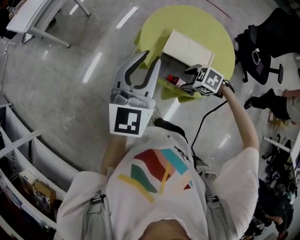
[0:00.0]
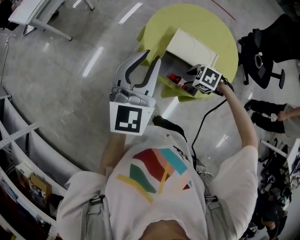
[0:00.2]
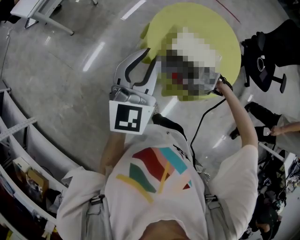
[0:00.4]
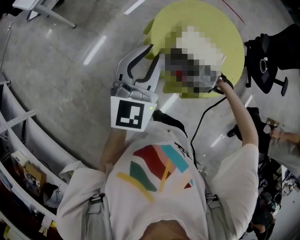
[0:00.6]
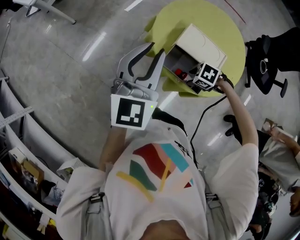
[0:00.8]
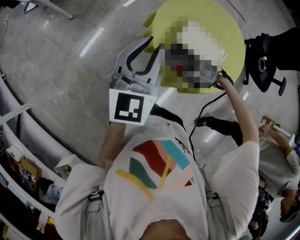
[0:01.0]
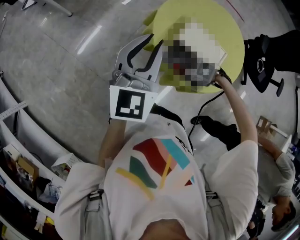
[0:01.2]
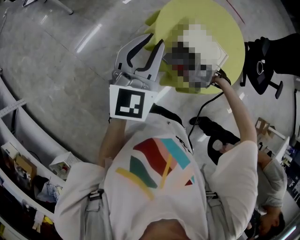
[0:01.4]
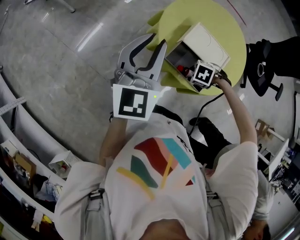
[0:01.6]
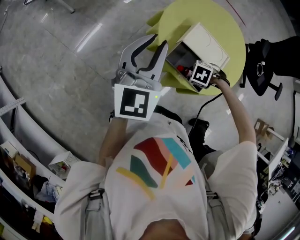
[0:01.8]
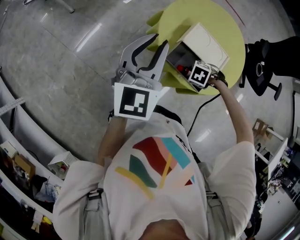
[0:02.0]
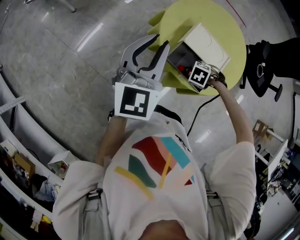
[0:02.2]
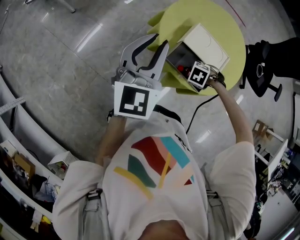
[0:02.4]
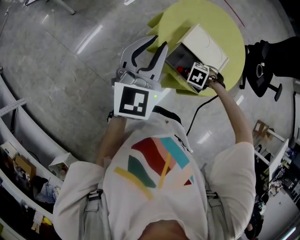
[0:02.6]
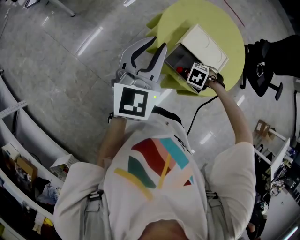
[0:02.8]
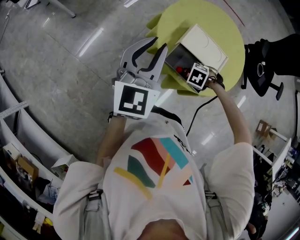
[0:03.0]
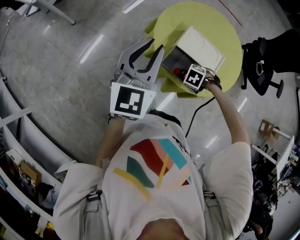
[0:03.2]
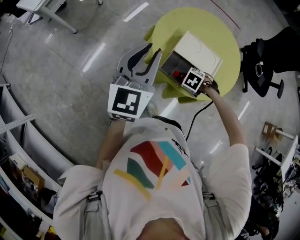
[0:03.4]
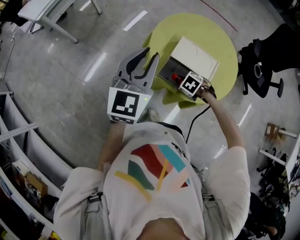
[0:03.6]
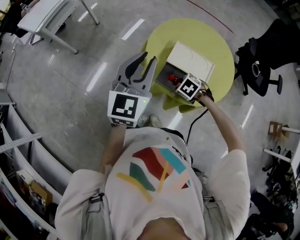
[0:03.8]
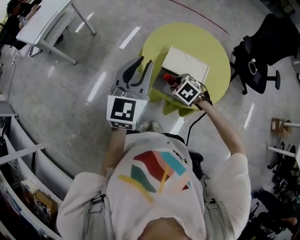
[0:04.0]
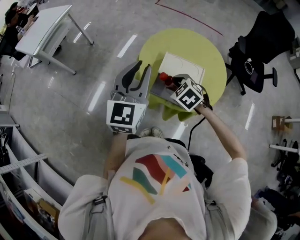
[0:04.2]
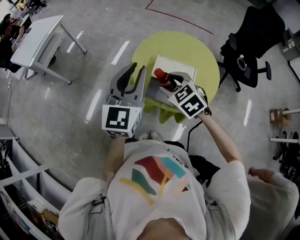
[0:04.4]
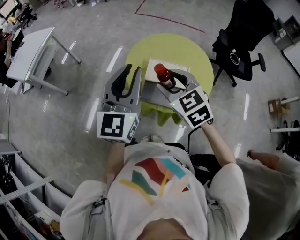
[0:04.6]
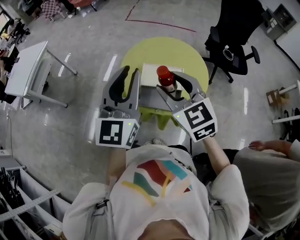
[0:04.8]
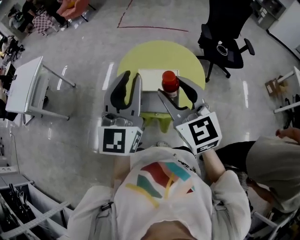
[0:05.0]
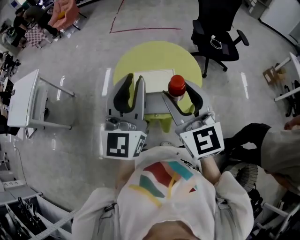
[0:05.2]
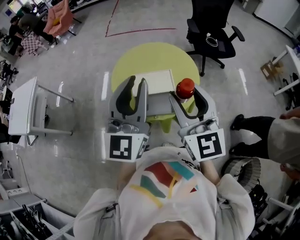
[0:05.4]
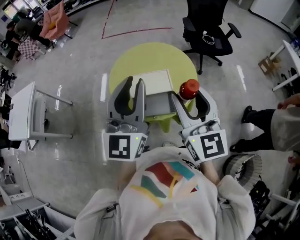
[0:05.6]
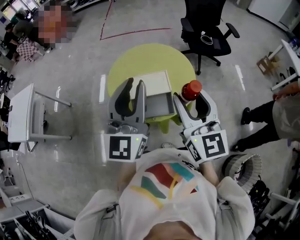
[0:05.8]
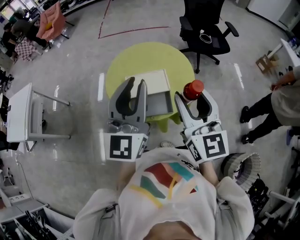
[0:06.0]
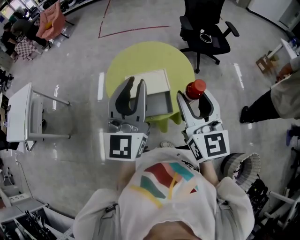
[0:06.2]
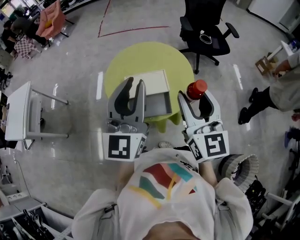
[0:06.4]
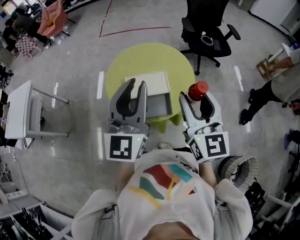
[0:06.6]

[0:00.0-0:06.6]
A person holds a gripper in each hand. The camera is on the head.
0:00.0 to 0:01.6: The left gripper ends up approximately 5 cm from where it was. The right gripper travels downward by some 10 cm, and rotates roughly 30 degrees.
0:01.6 to 0:03.2: There are only small adjustments of the grippers.
0:03.2 to 0:05.0: The right gripper travels upward by some 40 cm, and points its fingers roughly 80 degrees further upward. Meanwhile the left gripper moves upward, some 15 cm, and swivels about 30 degrees.
0:05.0 to 0:06.6: The left gripper shifts about 5 cm to the right. Meanwhile the right gripper heads to the right, covering approximately 10 cm, and swivels approximately 30 degrees.

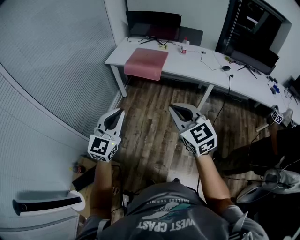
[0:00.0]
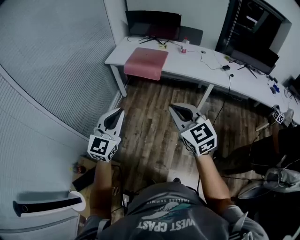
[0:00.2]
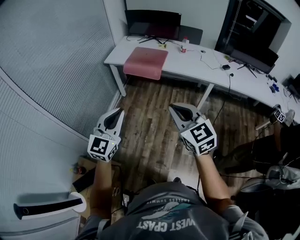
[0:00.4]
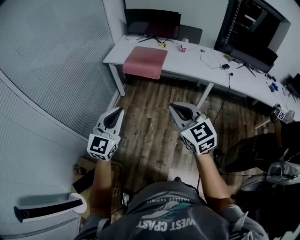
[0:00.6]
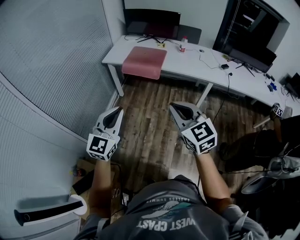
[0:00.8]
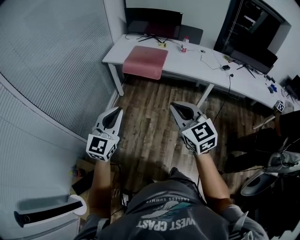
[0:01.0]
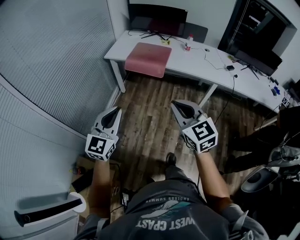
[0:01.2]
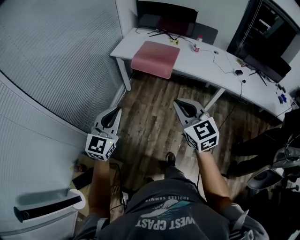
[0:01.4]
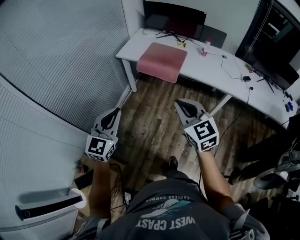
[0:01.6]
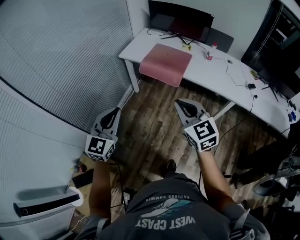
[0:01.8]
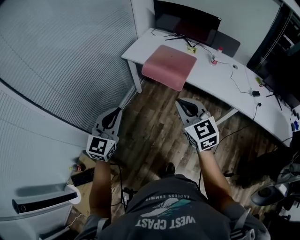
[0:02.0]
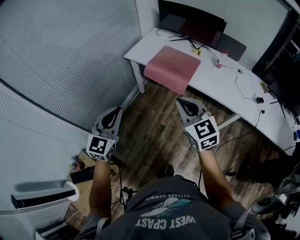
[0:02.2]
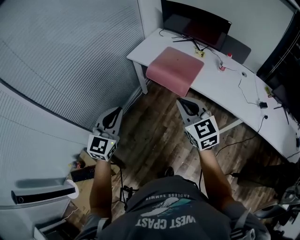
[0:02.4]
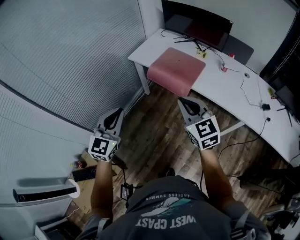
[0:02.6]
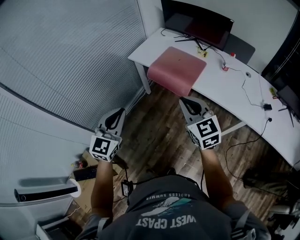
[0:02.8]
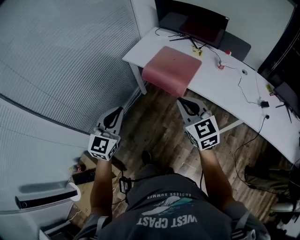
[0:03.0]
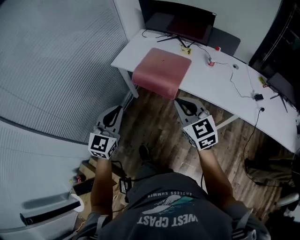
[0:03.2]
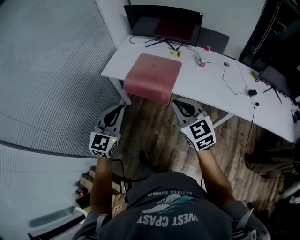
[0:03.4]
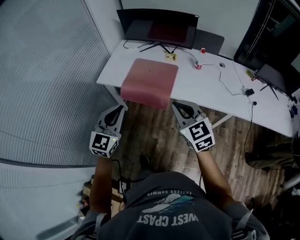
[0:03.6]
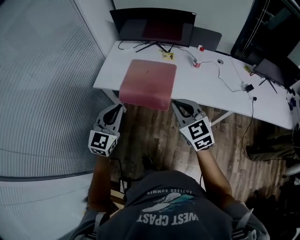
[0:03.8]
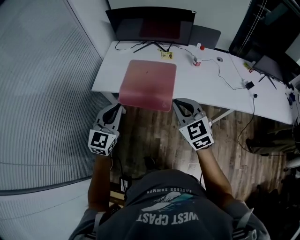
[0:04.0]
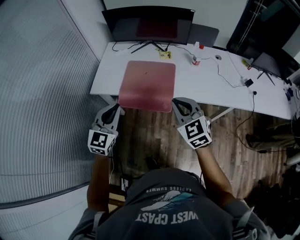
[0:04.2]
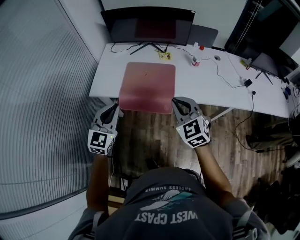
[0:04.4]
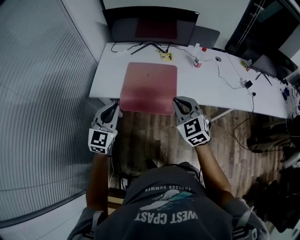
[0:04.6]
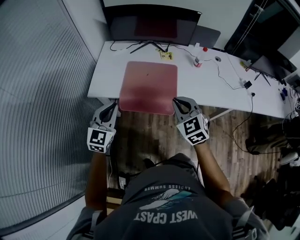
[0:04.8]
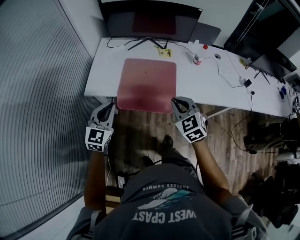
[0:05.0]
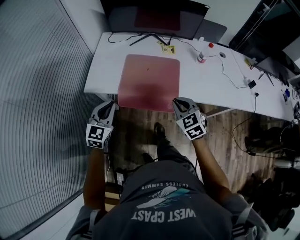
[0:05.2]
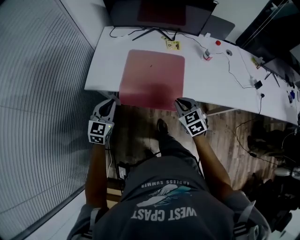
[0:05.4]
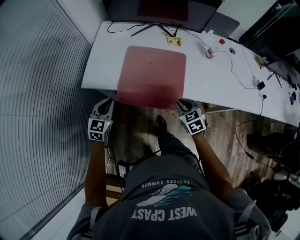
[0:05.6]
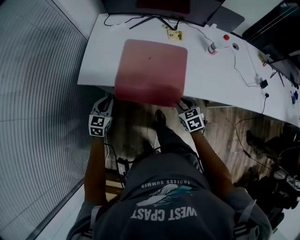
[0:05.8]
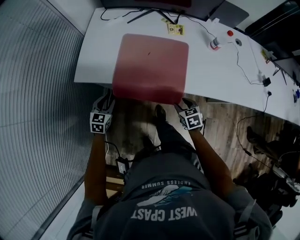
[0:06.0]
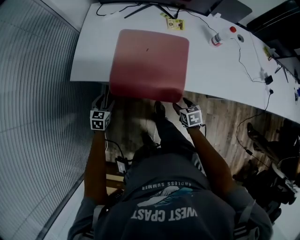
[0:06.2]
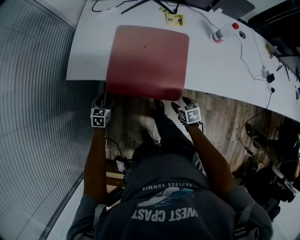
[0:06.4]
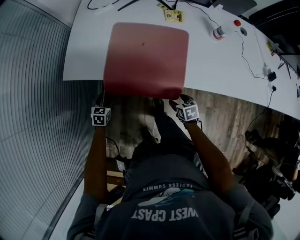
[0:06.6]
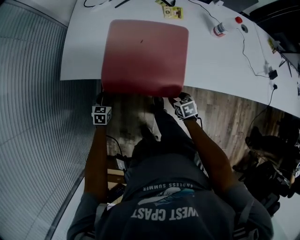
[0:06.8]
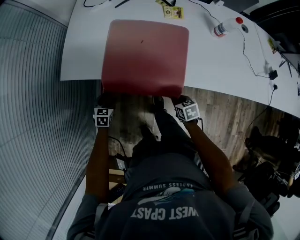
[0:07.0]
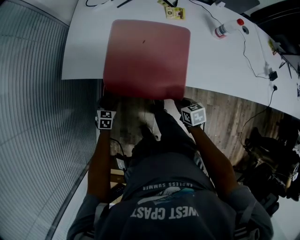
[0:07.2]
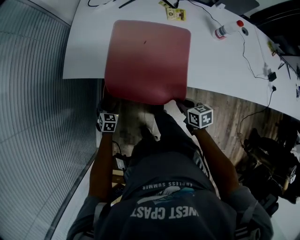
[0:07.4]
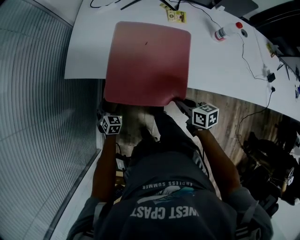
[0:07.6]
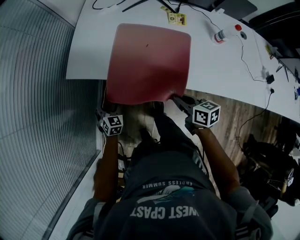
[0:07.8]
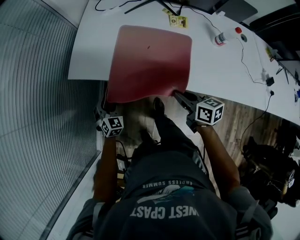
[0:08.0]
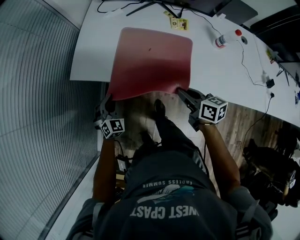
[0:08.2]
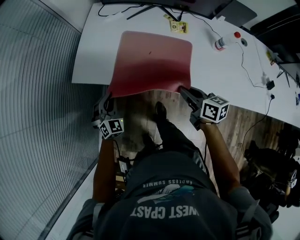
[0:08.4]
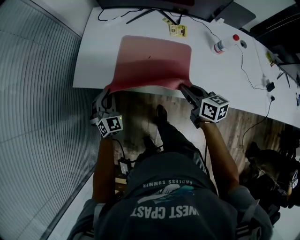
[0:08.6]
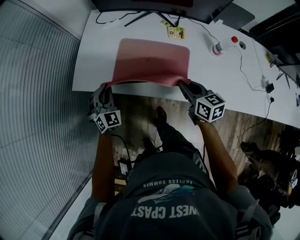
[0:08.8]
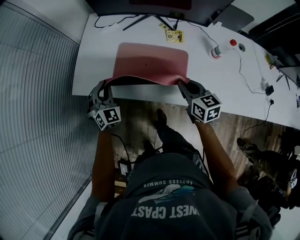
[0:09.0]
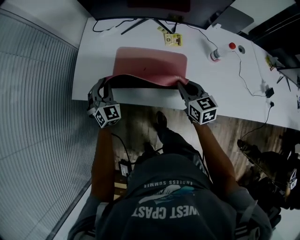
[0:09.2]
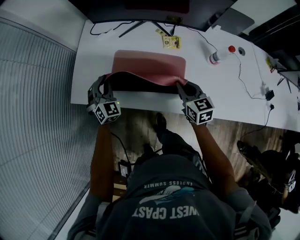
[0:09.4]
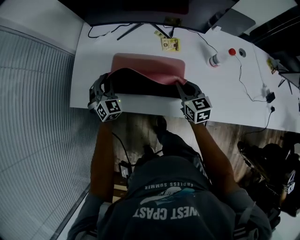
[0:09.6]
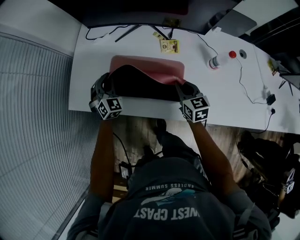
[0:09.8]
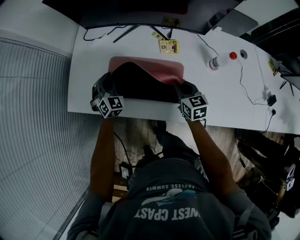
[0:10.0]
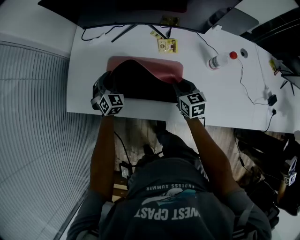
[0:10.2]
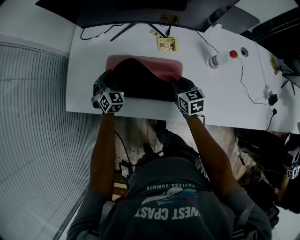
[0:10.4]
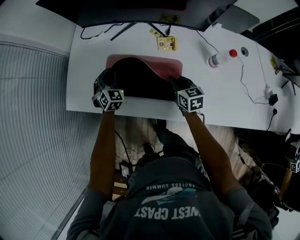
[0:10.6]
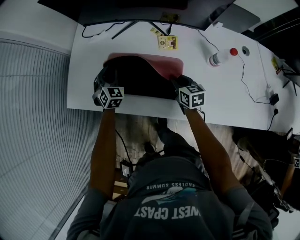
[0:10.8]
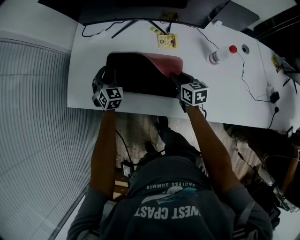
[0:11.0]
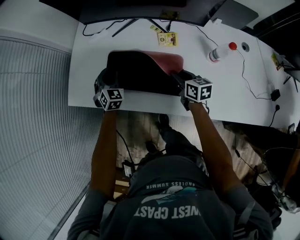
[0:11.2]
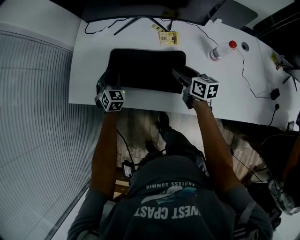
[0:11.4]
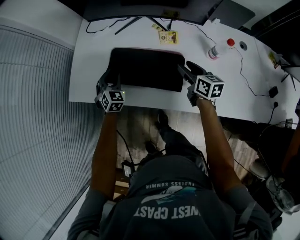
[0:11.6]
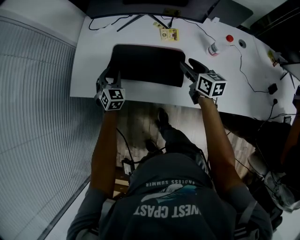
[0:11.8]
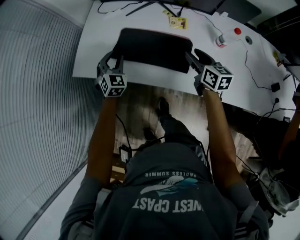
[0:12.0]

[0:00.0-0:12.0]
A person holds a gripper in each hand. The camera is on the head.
0:00.0 to 0:01.6: The left gripper goes approximately 15 cm forward and to the left; the right gripper goes approximately 15 cm forward.
0:01.6 to 0:03.0: The grippers both shift forward and to the right by about 20 cm.
0:03.0 to 0:04.4: The right gripper shifts by approximately 20 cm, and rotates some 30 degrees, while the left gripper shifts by about 30 cm, and swivels approximately 30 degrees.
0:04.4 to 0:06.0: Both grippers move downward, roughly 35 cm. The left gripper turns by about 30 degrees, and opens up, while the right gripper angles its fingers downward, by approximately 30 degrees, and opens up.
0:06.0 to 0:07.6: The left gripper is displaced downward by some 10 cm, changes its angle by roughly 20 degrees, and opens its fingers. The right gripper goes downward and returns, some 10 cm each way, turns by about 30 degrees, and closes up.
0:07.6 to 0:09.0: The left gripper travels upward, forward and to the right by about 30 cm, swivels about 40 degrees, and closes. Meanwhile the right gripper heads forward, upward and to the right, covering some 20 cm, and rotates roughly 30 degrees.
0:09.0 to 0:10.4: The right gripper shifts approximately 15 cm downward, forward and to the right. Meanwhile the left gripper heads forward, to the right and downward, covering roughly 20 cm.
0:10.4 to 0:12.0: The right gripper is displaced upward by about 10 cm, and opens its fingers, while the left gripper is displaced backward and upward by about 10 cm.

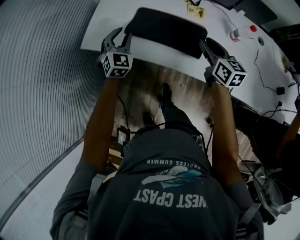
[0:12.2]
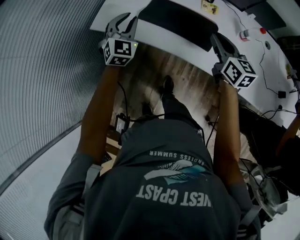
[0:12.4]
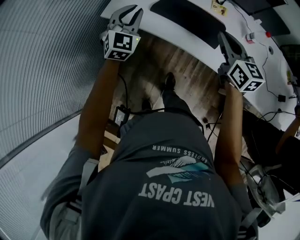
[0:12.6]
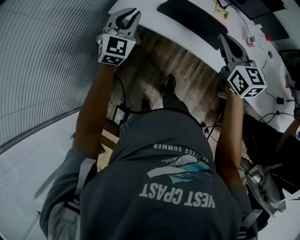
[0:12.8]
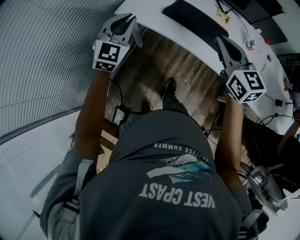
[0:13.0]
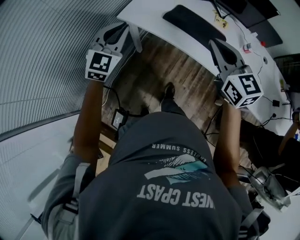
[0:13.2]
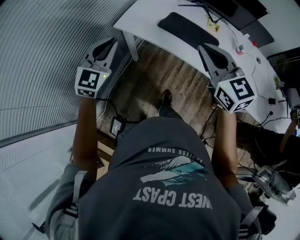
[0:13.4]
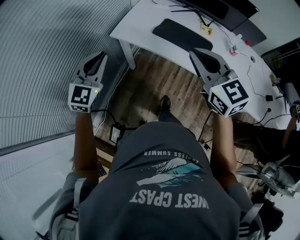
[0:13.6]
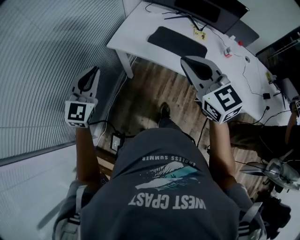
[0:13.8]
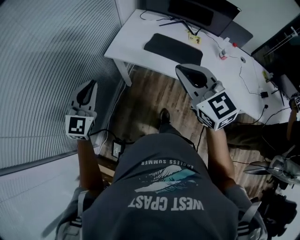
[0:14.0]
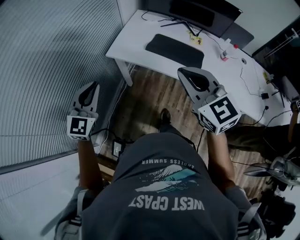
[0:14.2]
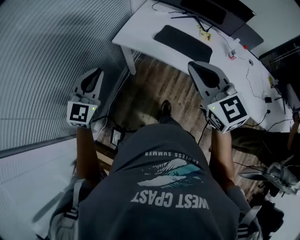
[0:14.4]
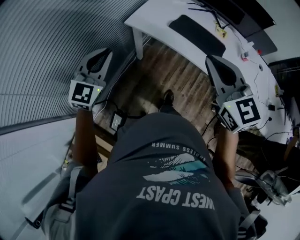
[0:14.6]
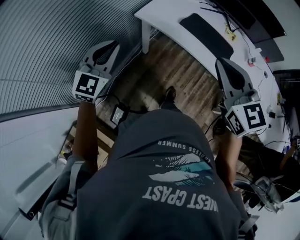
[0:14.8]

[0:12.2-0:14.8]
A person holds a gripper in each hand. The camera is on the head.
0:12.2 to 0:13.4: The left gripper travels backward, to the left and upward by approximately 35 cm, and changes its angle by about 20 degrees, while the right gripper travels to the left, backward and upward by approximately 35 cm, turns by roughly 40 degrees, and closes up.
0:13.4 to 0:14.8: The left gripper travels to the left and backward by roughly 10 cm. Meanwhile the right gripper goes about 10 cm backward and to the left.

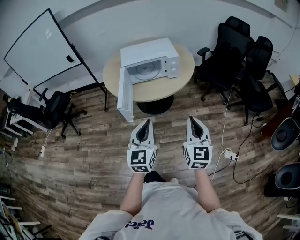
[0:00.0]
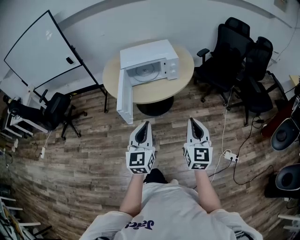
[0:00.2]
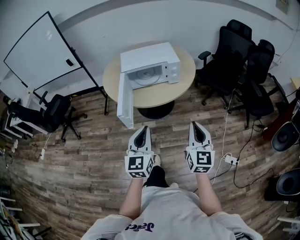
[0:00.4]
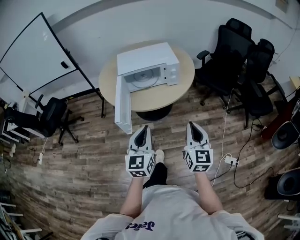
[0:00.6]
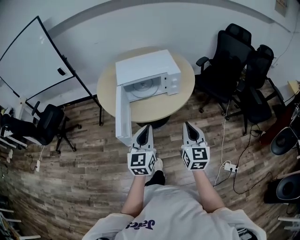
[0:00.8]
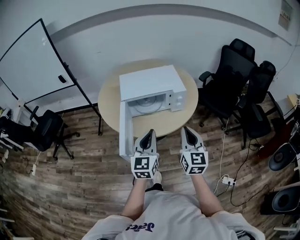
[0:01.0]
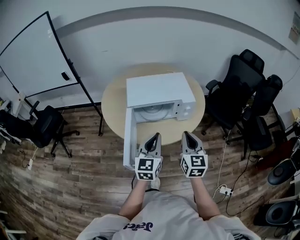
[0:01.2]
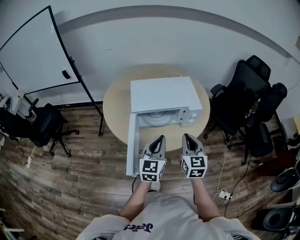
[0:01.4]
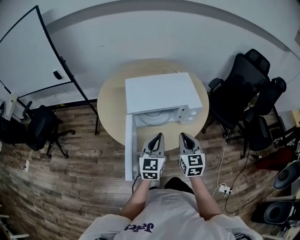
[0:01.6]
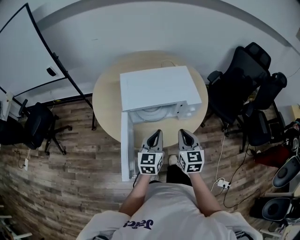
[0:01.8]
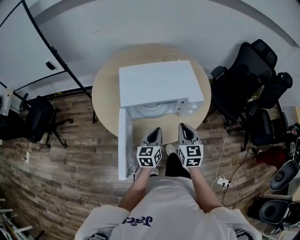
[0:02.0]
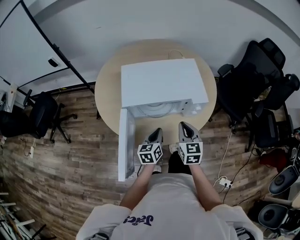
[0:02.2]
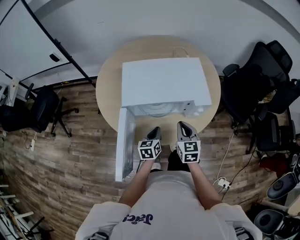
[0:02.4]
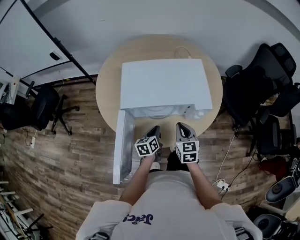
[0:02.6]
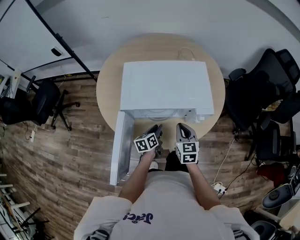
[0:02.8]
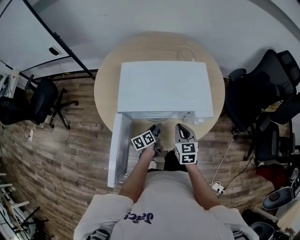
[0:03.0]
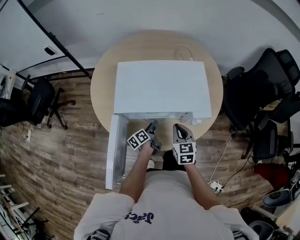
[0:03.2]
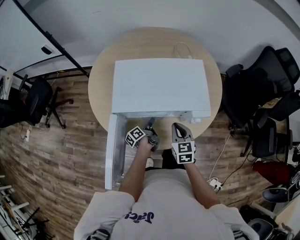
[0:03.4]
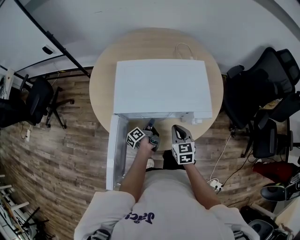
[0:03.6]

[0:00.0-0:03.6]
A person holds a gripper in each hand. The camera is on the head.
0:00.0 to 0:01.8: The right gripper shifts by some 40 cm.
0:01.8 to 0:03.6: The right gripper travels downward by about 15 cm, and turns by roughly 20 degrees.
